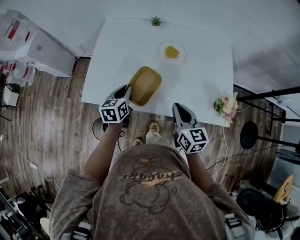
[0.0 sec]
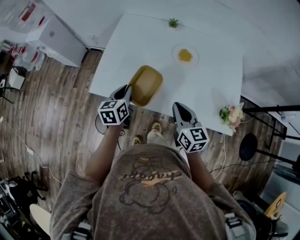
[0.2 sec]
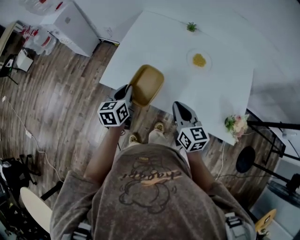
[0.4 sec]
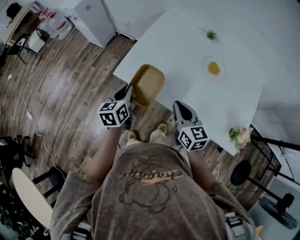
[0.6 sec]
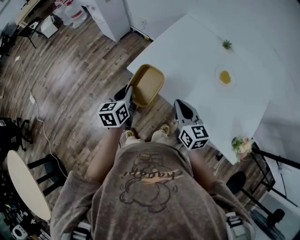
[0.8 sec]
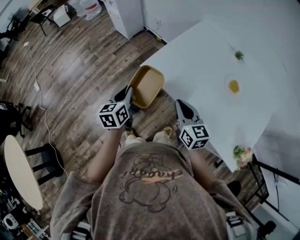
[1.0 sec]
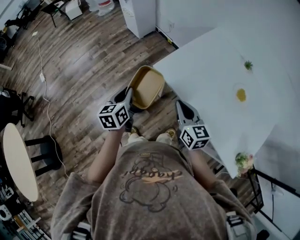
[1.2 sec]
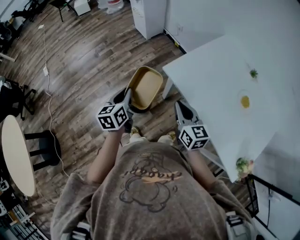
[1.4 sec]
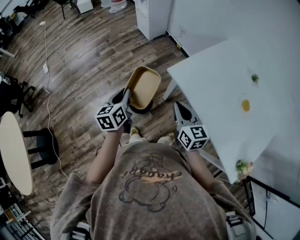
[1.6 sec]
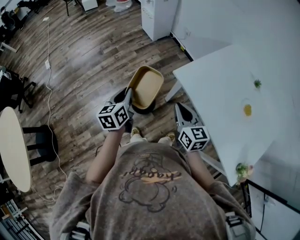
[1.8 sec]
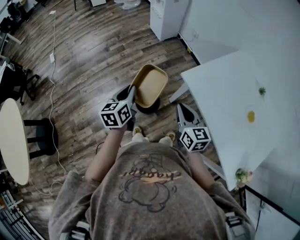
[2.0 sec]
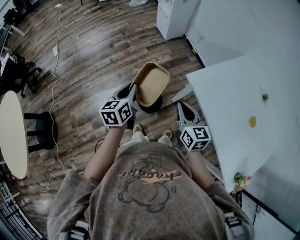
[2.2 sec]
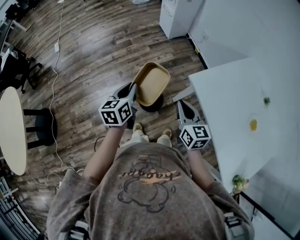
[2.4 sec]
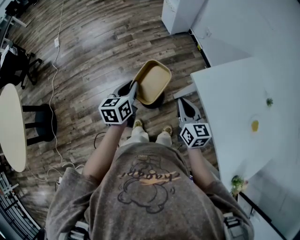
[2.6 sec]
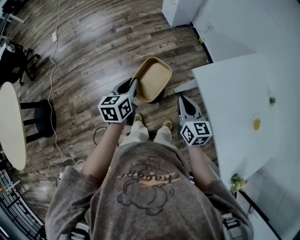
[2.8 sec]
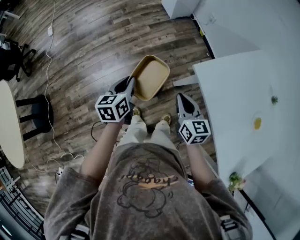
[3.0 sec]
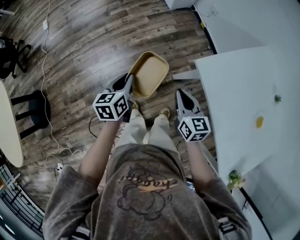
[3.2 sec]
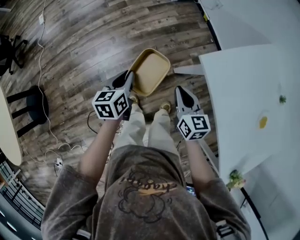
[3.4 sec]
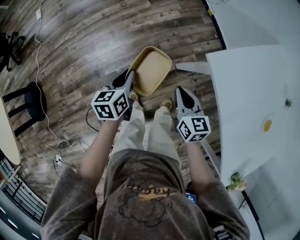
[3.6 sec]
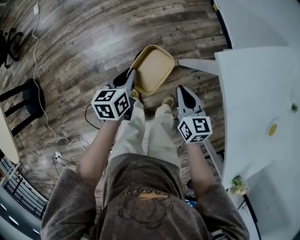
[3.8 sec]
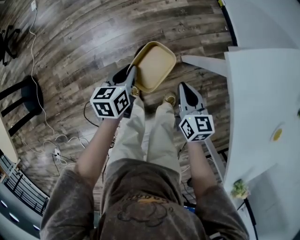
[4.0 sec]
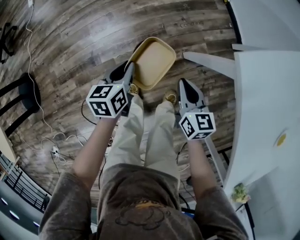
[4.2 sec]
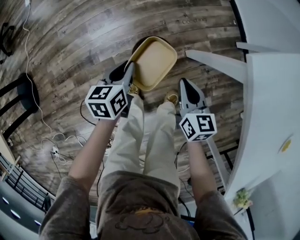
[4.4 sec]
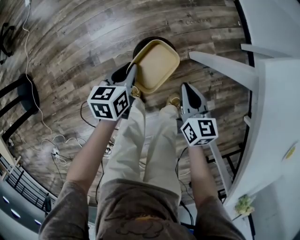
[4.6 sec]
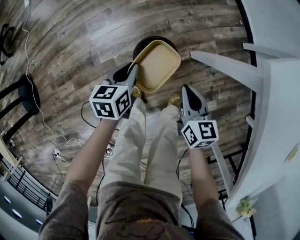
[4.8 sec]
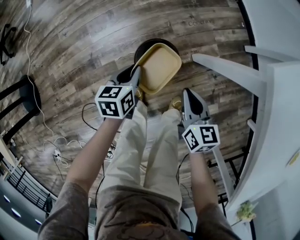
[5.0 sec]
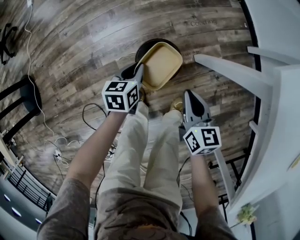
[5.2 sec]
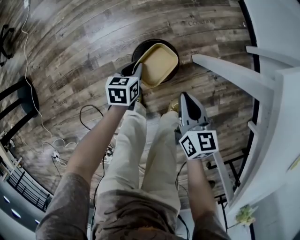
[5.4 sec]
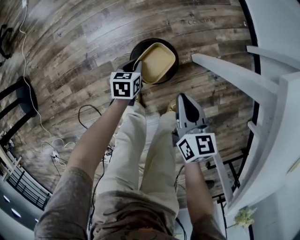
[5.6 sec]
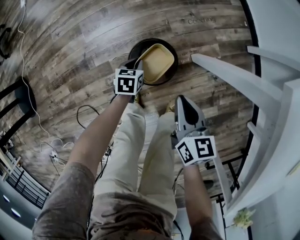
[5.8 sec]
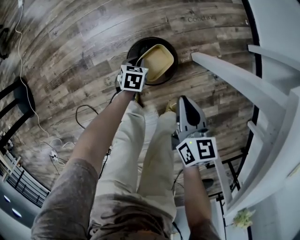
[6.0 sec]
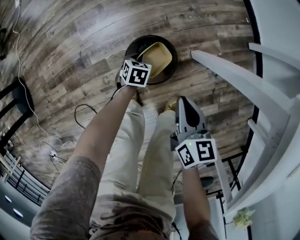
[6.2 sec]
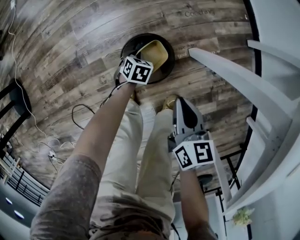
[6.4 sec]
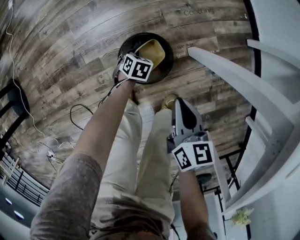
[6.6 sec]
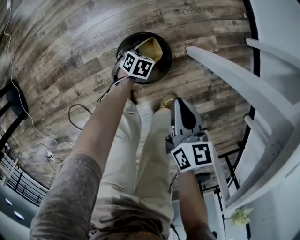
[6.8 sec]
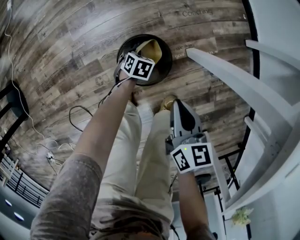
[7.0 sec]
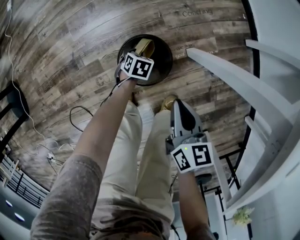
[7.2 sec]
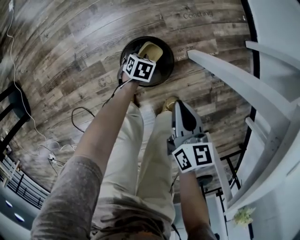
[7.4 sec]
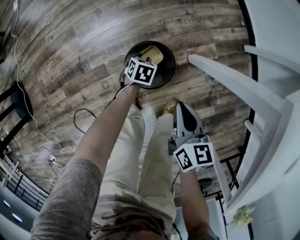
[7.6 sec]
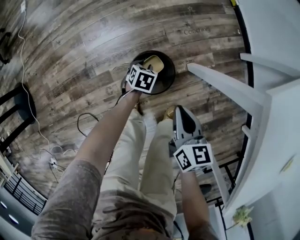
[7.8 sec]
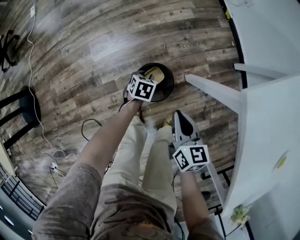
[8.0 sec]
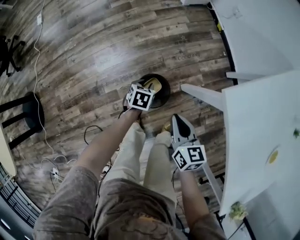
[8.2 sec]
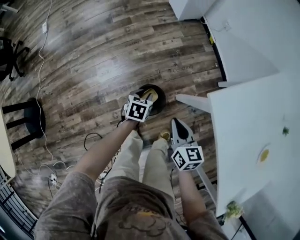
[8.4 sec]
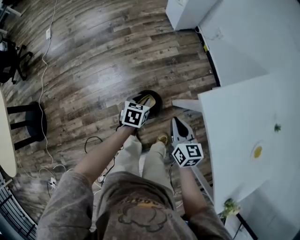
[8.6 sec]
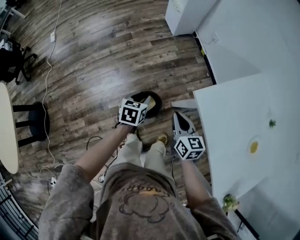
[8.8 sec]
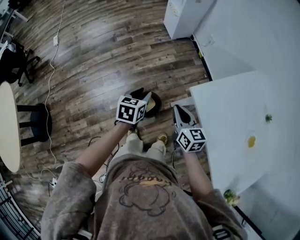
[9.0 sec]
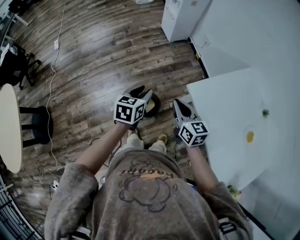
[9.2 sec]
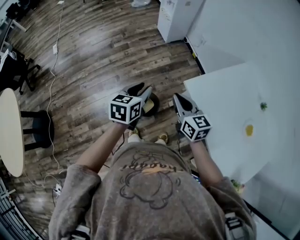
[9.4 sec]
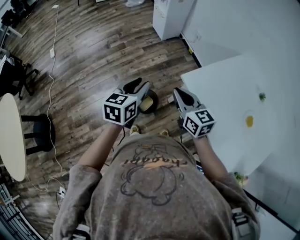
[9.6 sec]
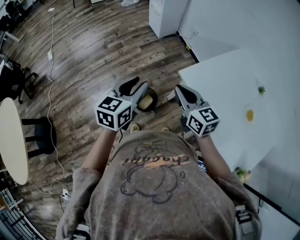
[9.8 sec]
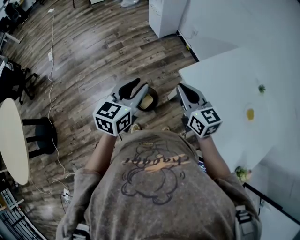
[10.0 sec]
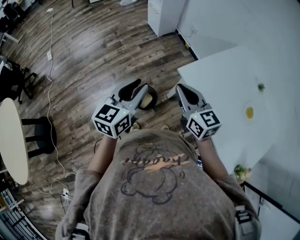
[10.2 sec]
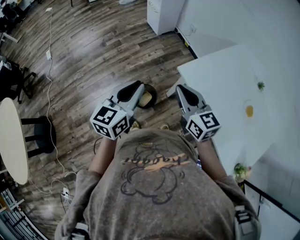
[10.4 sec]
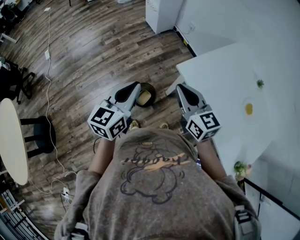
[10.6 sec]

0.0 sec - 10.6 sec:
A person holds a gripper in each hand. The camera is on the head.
0.0 sec - 1.6 sec: Both grippers are carried approximately 50 cm. The right gripper swivels some 50 degrees, while the left gripper rotates approximately 50 degrees.
1.6 sec - 3.0 sec: The left gripper shifts roughly 15 cm downward, to the left and forward. Meanwhile the right gripper moves downward, forward and to the left, some 15 cm.
3.0 sec - 4.6 sec: Both grippers travel together downward, about 40 cm.
4.6 sec - 6.0 sec: The left gripper is displaced downward by about 25 cm, and changes its angle by roughly 30 degrees; the right gripper goes about 5 cm downward.
7.6 sec - 9.0 sec: The right gripper moves upward, about 40 cm, and rotates about 20 degrees, while the left gripper travels upward by approximately 60 cm, and points its fingers about 30 degrees further upward.
9.0 sec - 10.6 sec: Both grippers travel together upward and backward, some 20 cm. The left gripper changes its angle by approximately 30 degrees, and closes its fingers.

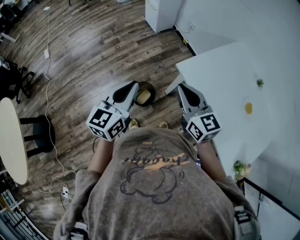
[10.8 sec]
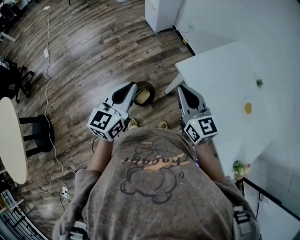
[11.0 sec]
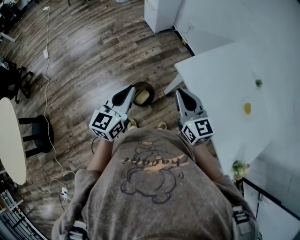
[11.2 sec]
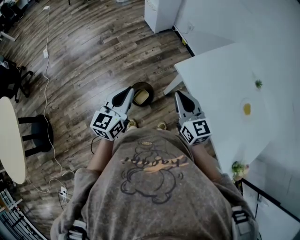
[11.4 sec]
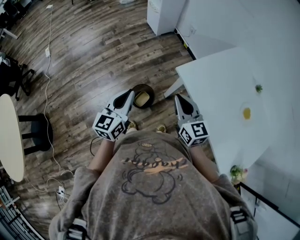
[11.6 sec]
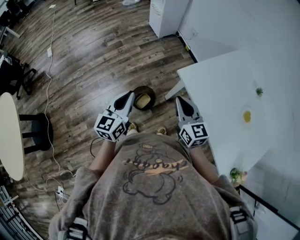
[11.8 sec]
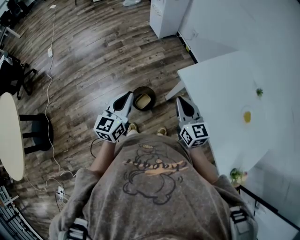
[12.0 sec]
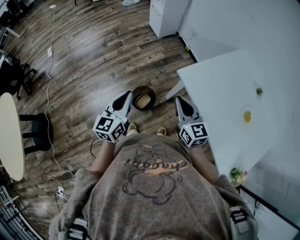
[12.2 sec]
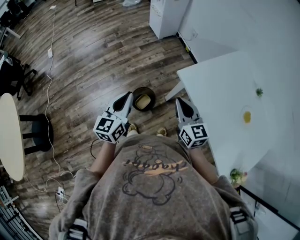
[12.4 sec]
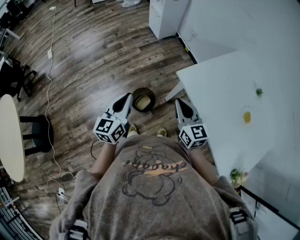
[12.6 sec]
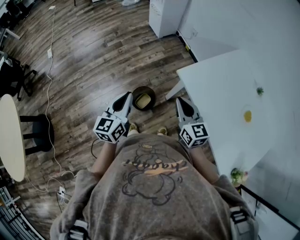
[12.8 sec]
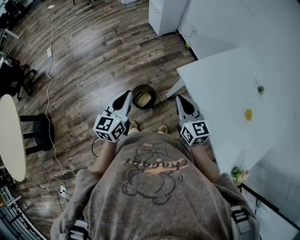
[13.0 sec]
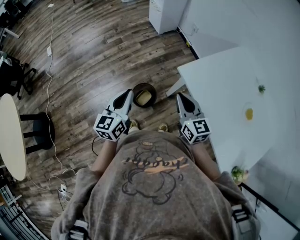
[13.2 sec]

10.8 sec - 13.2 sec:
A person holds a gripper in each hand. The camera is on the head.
10.8 sec - 12.0 sec: Both grippers move downward, roughly 10 cm.
12.0 sec - 13.2 sec: Both grippers stay about where they are.

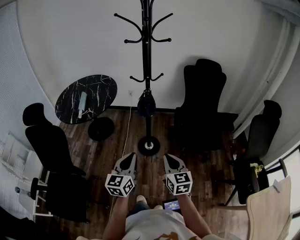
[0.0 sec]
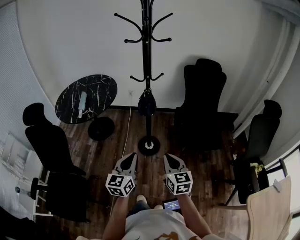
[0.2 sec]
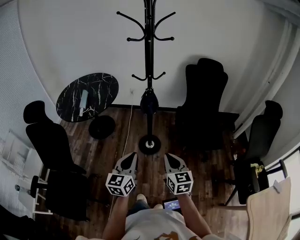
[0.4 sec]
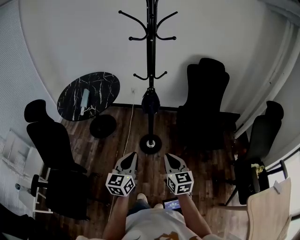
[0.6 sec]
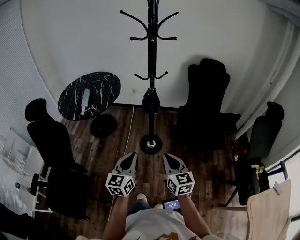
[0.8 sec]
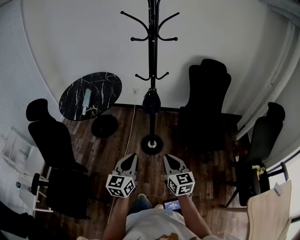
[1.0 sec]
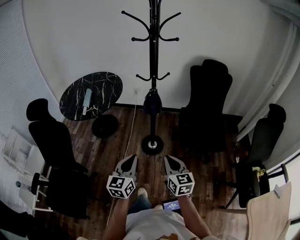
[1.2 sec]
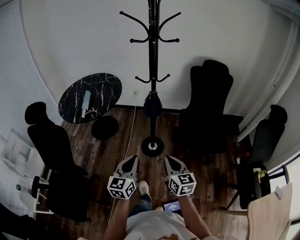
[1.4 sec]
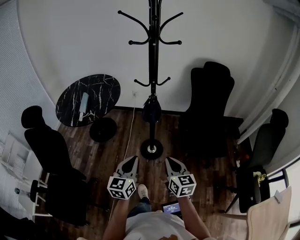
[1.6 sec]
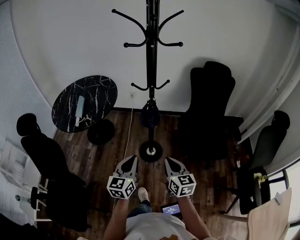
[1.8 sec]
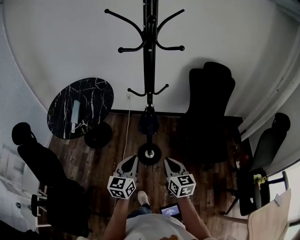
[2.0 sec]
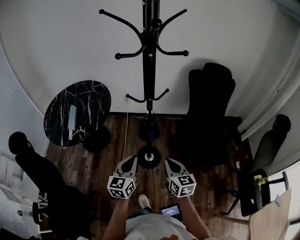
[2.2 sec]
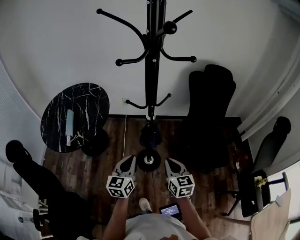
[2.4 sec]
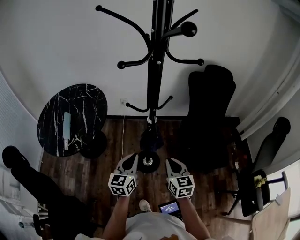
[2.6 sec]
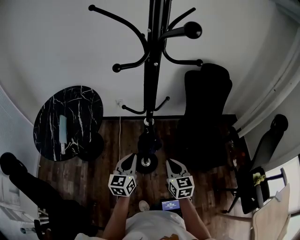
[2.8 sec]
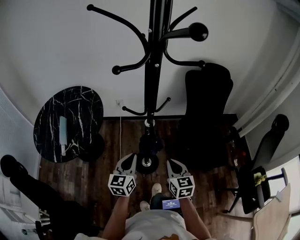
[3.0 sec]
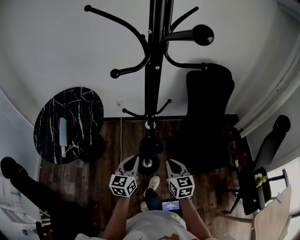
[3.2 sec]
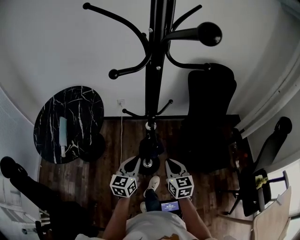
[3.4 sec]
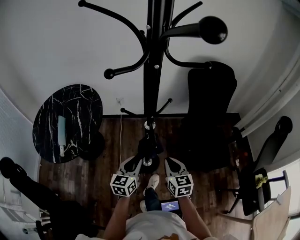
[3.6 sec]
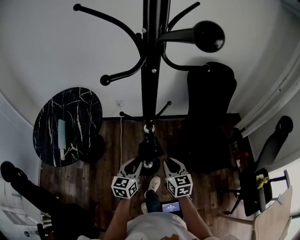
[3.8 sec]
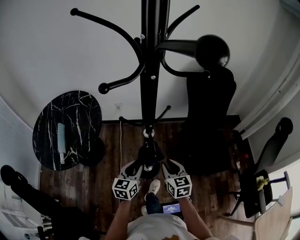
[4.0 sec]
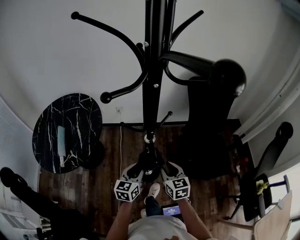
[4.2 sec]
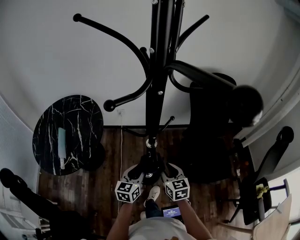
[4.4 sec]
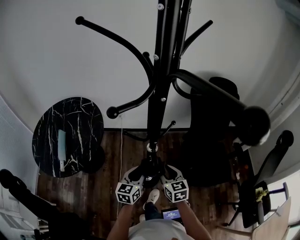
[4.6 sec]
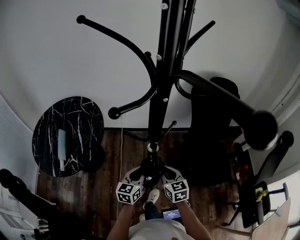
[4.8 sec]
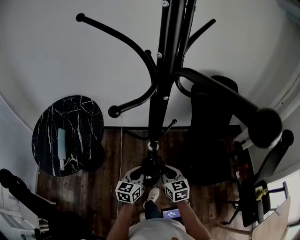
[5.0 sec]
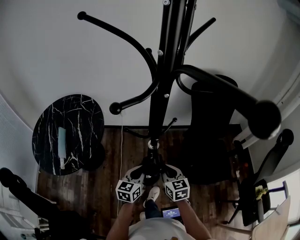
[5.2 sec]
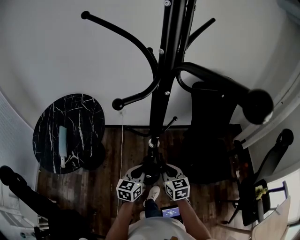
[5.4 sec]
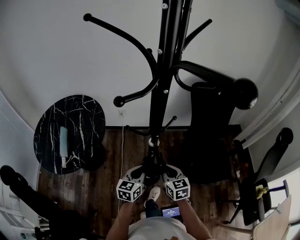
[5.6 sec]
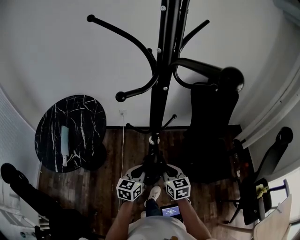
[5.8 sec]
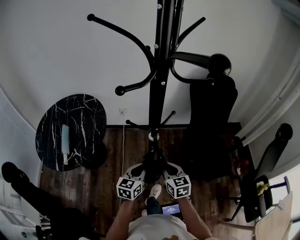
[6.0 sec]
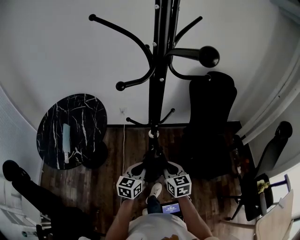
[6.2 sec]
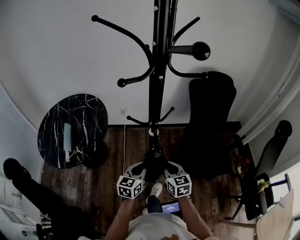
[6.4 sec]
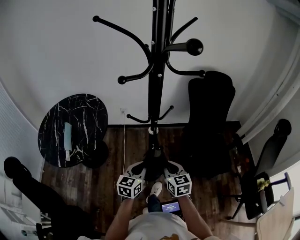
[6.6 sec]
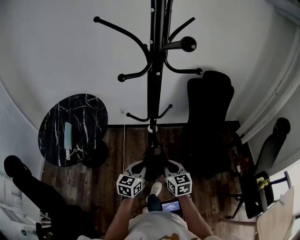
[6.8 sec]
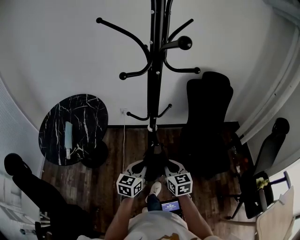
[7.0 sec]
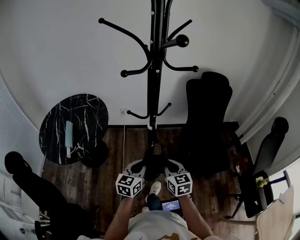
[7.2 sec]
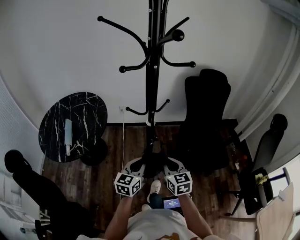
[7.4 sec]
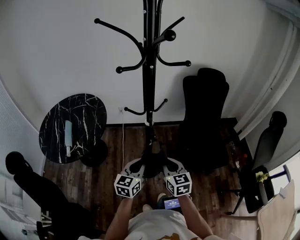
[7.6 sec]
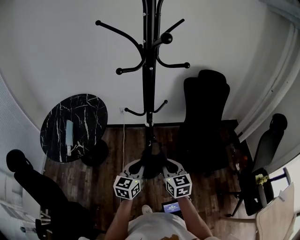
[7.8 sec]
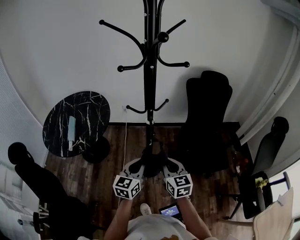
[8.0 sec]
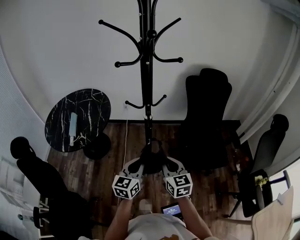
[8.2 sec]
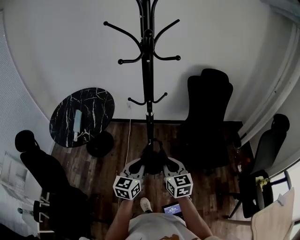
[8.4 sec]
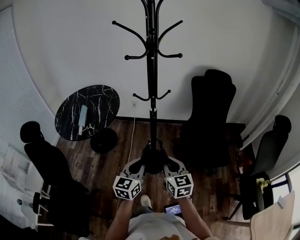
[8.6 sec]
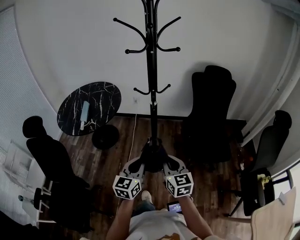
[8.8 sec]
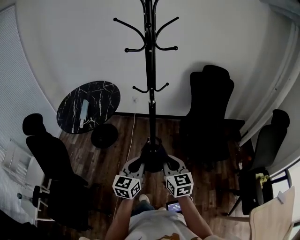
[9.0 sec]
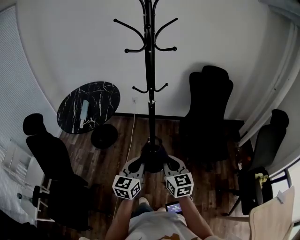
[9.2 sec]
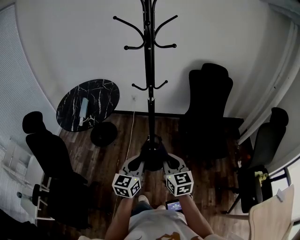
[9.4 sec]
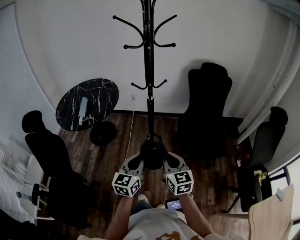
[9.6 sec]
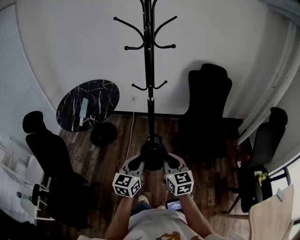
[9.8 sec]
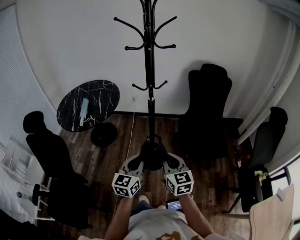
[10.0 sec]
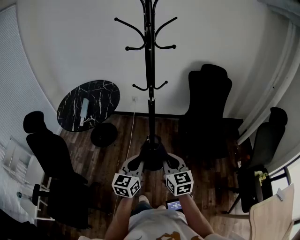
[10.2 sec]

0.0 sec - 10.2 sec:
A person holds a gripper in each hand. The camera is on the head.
0.0 sec - 1.4 sec: There are only small adjustments of the grippers.
1.4 sec - 3.0 sec: Both grippers move forward, roughly 30 cm.
3.0 sec - 4.4 sec: The right gripper heads forward, covering some 10 cm, and opens up; the left gripper shifts some 10 cm forward and downward, and opens.
4.4 sec - 5.8 sec: The right gripper closes.
5.8 sec - 7.2 sec: The grippers both shift backward by some 10 cm.
7.2 sec - 8.8 sec: The two grippers go about 20 cm backward.
8.8 sec - 10.2 sec: The grippers make only small movements.
